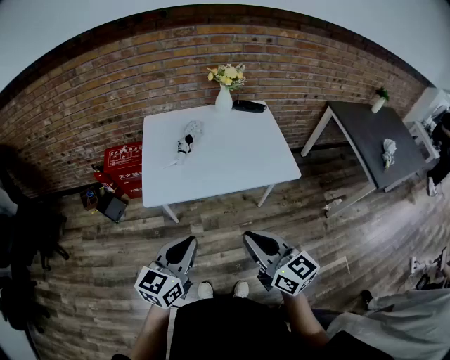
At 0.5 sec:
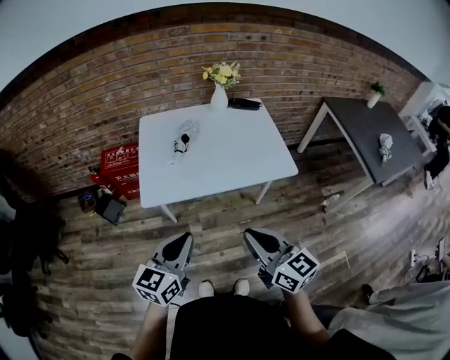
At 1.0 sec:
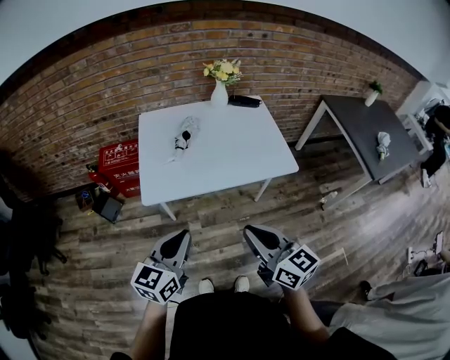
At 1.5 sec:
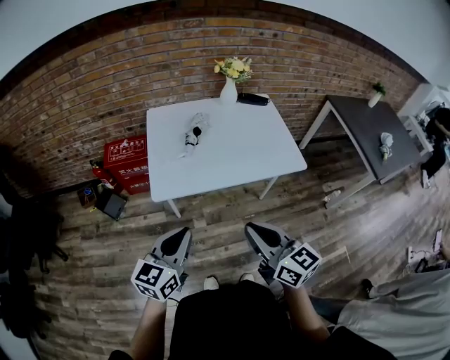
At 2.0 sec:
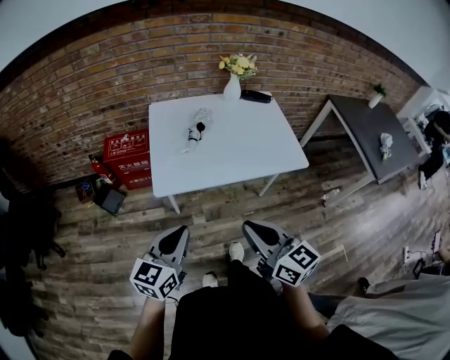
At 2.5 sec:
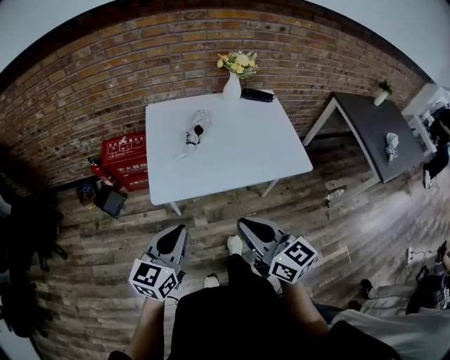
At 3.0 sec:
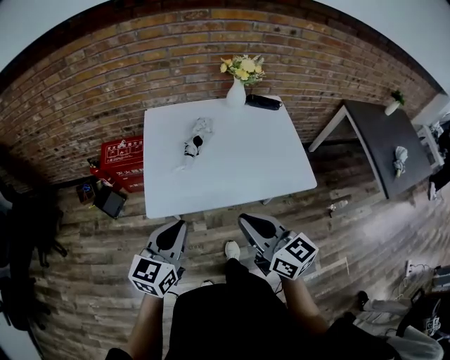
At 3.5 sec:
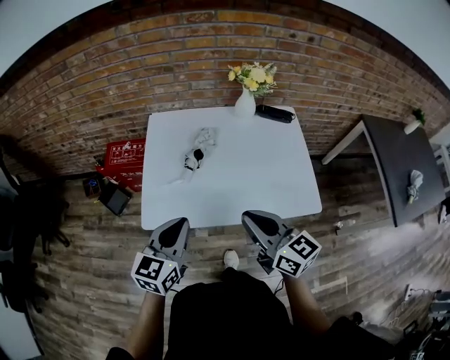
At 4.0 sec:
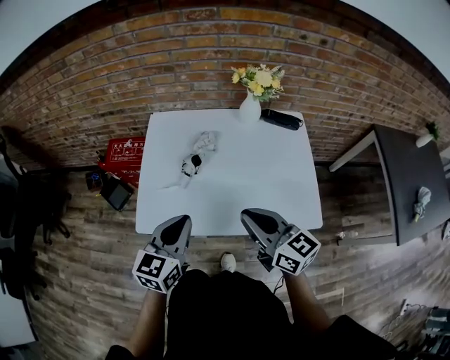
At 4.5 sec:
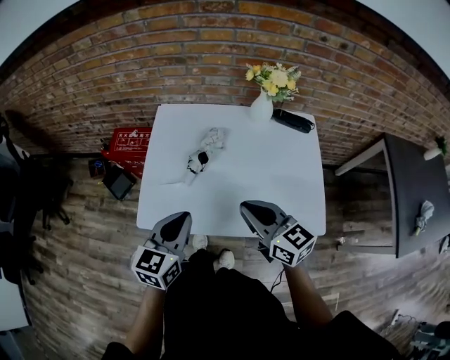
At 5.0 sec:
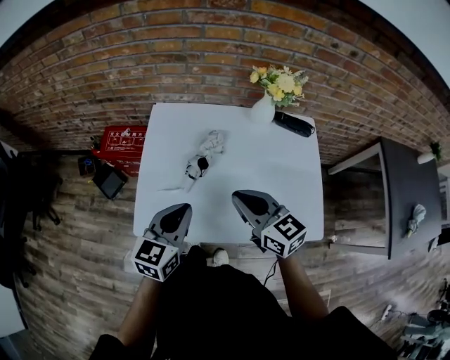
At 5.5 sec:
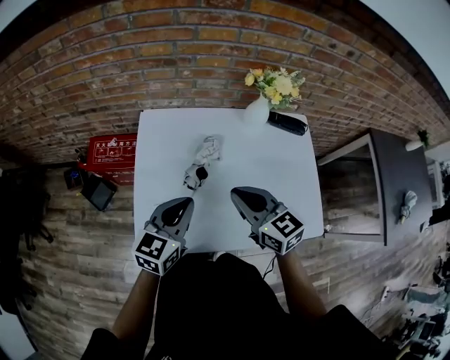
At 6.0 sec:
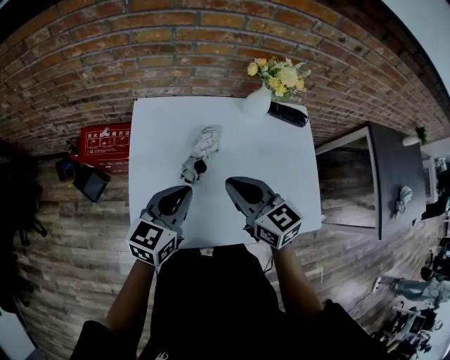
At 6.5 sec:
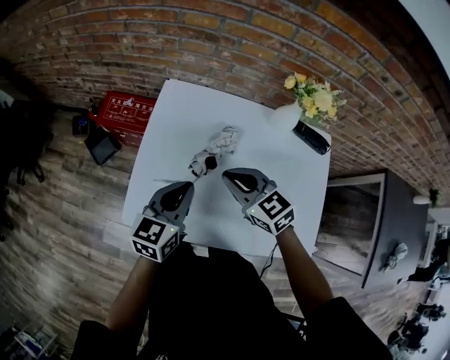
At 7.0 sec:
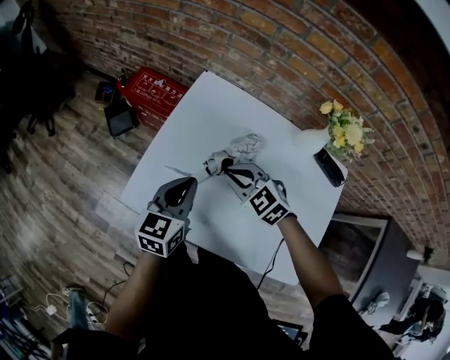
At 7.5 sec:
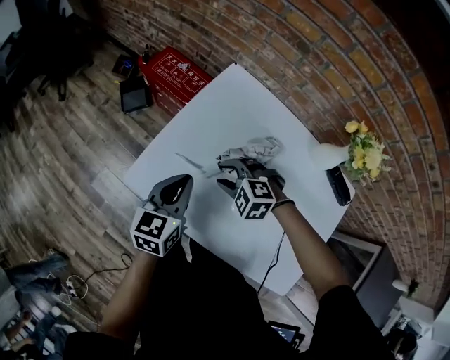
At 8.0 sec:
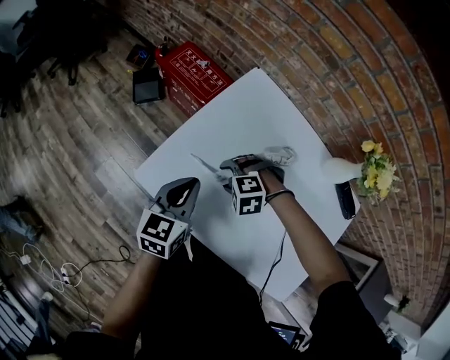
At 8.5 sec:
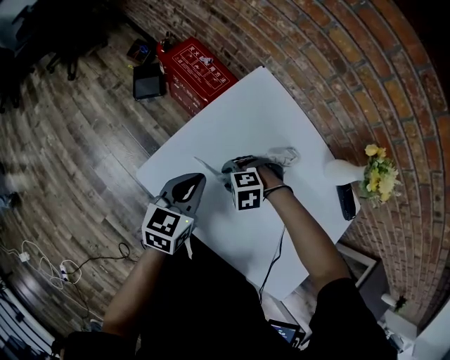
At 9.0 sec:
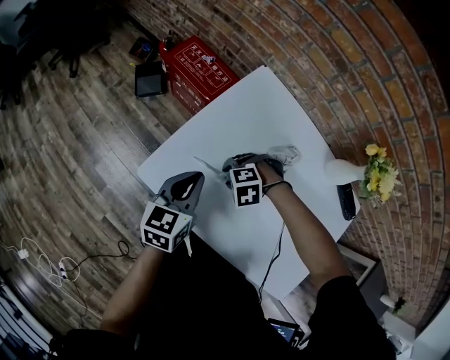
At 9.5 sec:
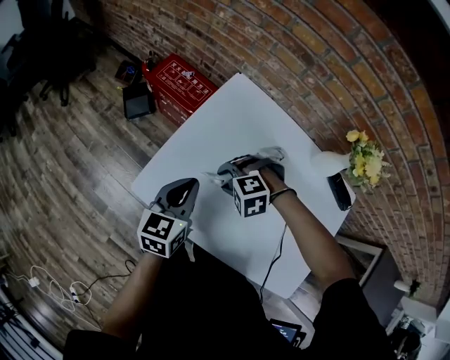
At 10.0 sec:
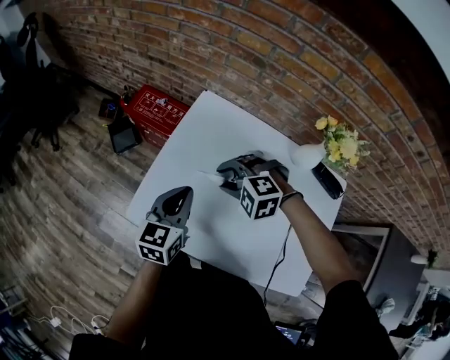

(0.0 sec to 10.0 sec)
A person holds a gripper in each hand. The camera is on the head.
0.0 sec - 2.0 sec: Both grippers move to the left, approximately 10 cm.
2.0 sec - 4.0 sec: The grippers both shift forward and to the right by roughly 30 cm.
4.0 sec - 6.0 sec: The right gripper goes some 20 cm forward and to the left. Meanwhile the left gripper heads forward, covering about 15 cm.
6.0 sec - 8.0 sec: The left gripper ends up approximately 15 cm from where it was, and swivels roughly 50 degrees, while the right gripper goes about 25 cm downward, tilts its fingers about 50 degrees downward, and opens.
8.0 sec - 10.0 sec: The right gripper heads upward, covering some 15 cm, and swivels roughly 20 degrees; the left gripper ends up some 10 cm from where it was.

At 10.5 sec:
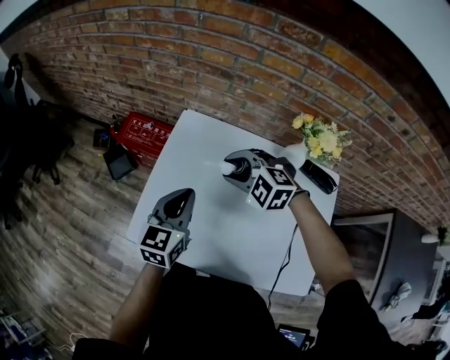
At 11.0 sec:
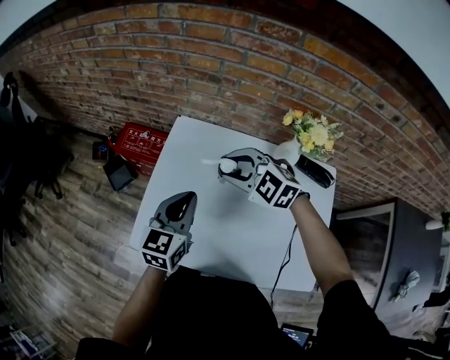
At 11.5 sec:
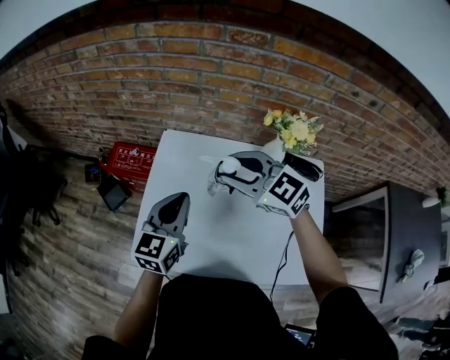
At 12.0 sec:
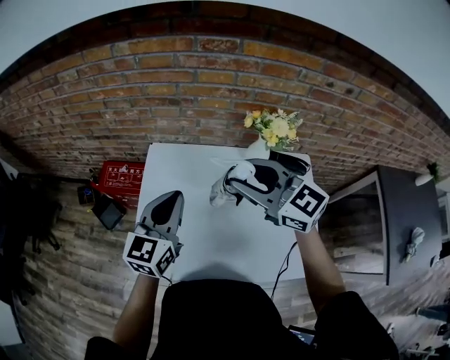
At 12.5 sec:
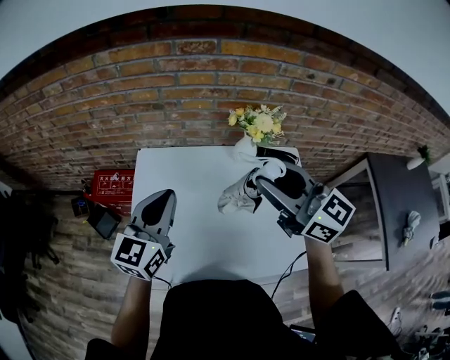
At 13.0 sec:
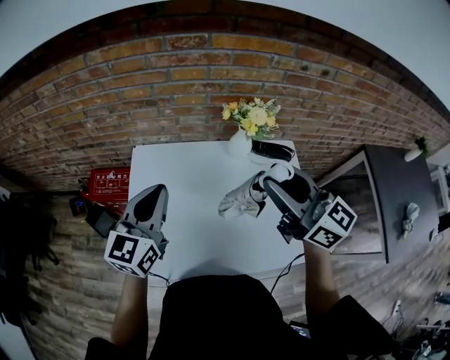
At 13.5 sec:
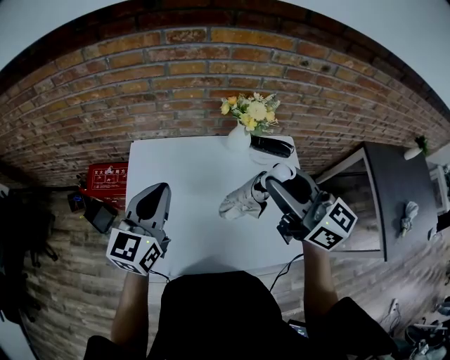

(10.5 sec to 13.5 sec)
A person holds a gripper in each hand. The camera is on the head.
10.5 sec - 12.0 sec: The left gripper travels upward by some 10 cm; the right gripper moves upward, to the right and backward, approximately 20 cm, and angles its fingers upward, by about 40 degrees.
12.0 sec - 13.5 sec: The right gripper moves to the right and backward, approximately 15 cm, and changes its angle by some 30 degrees.

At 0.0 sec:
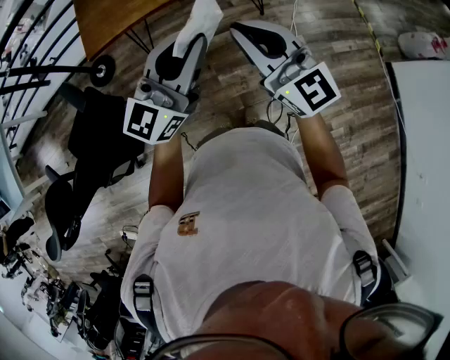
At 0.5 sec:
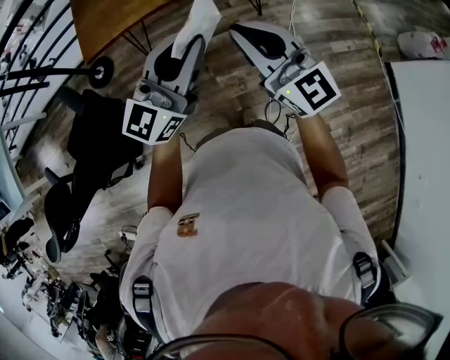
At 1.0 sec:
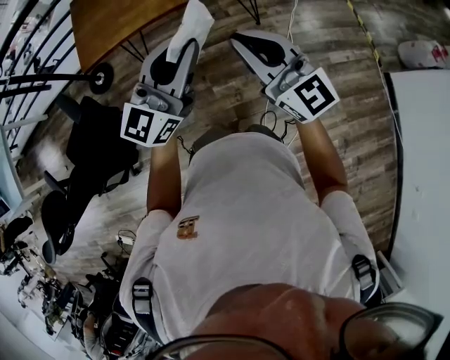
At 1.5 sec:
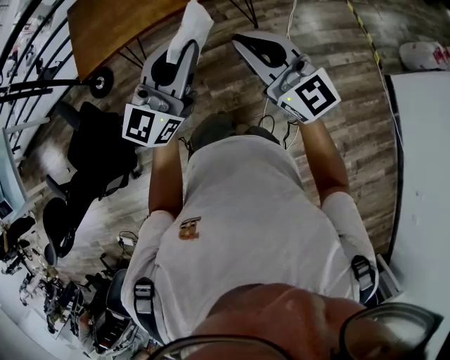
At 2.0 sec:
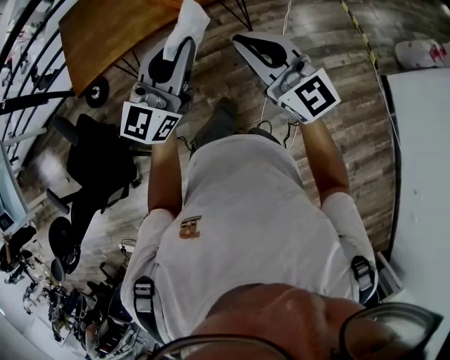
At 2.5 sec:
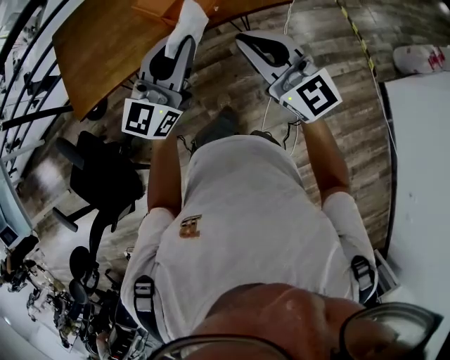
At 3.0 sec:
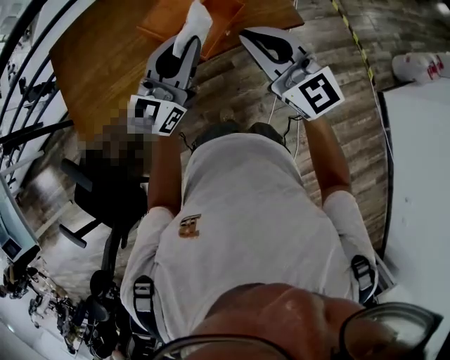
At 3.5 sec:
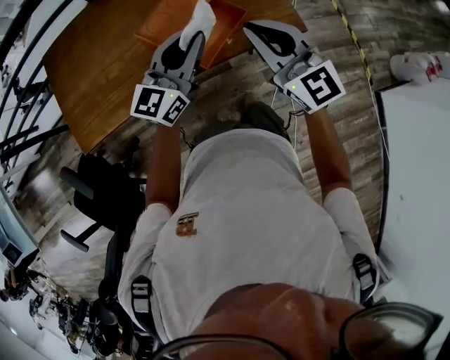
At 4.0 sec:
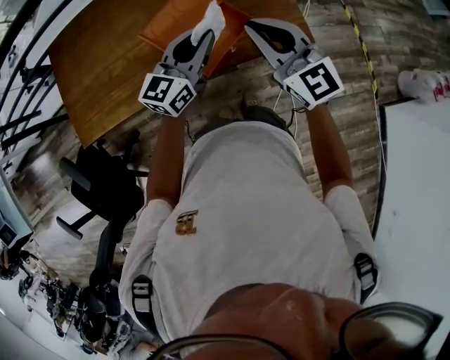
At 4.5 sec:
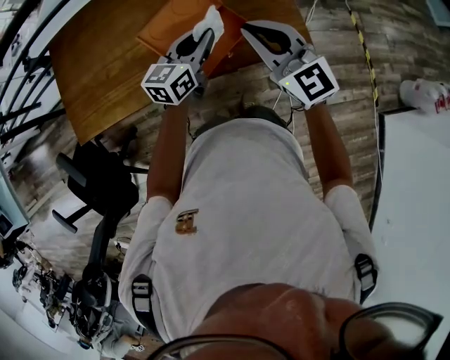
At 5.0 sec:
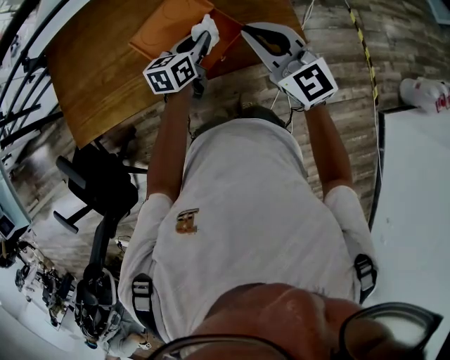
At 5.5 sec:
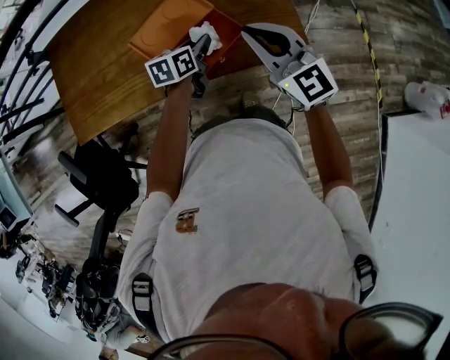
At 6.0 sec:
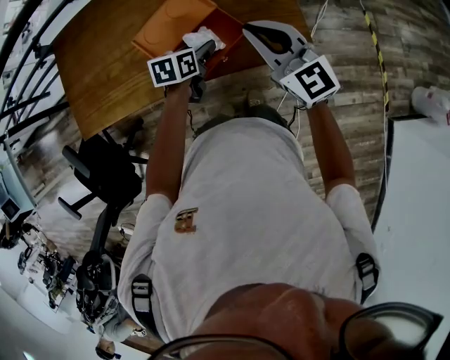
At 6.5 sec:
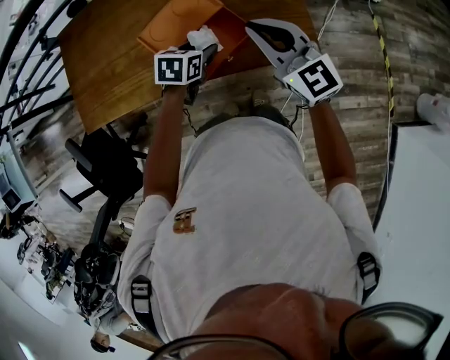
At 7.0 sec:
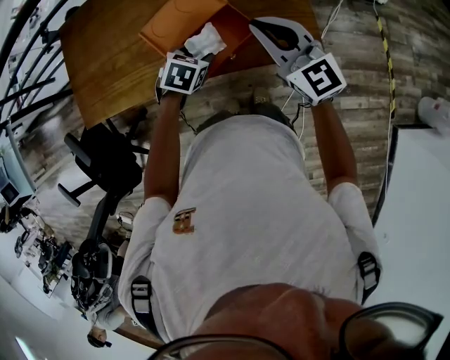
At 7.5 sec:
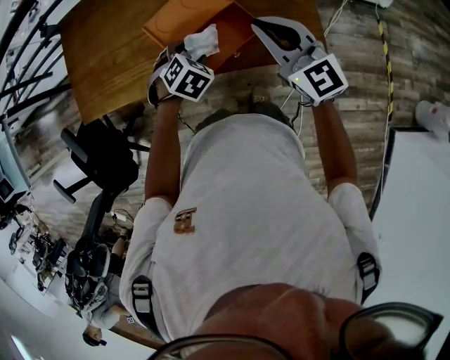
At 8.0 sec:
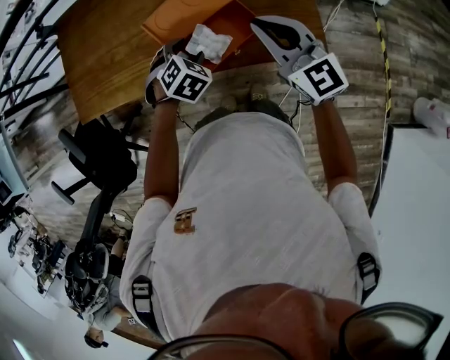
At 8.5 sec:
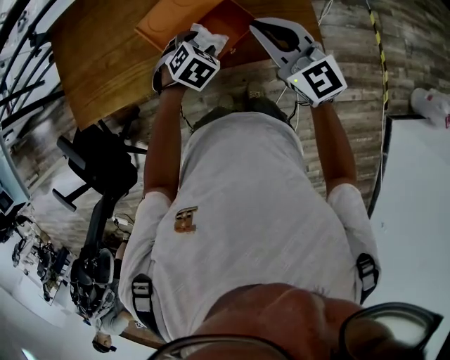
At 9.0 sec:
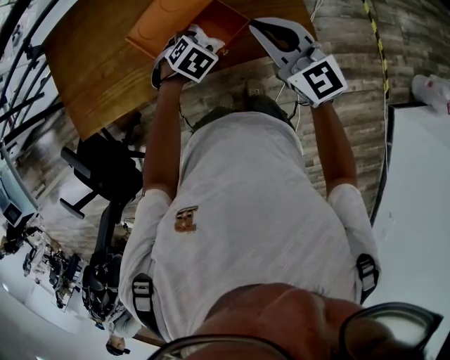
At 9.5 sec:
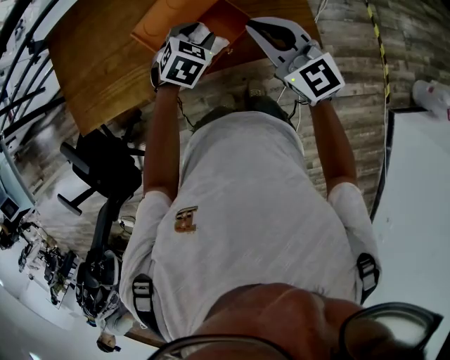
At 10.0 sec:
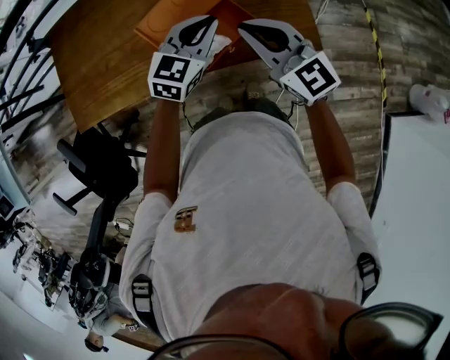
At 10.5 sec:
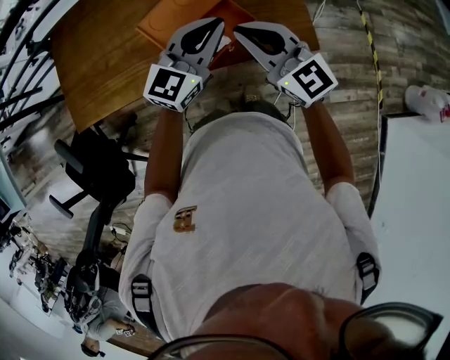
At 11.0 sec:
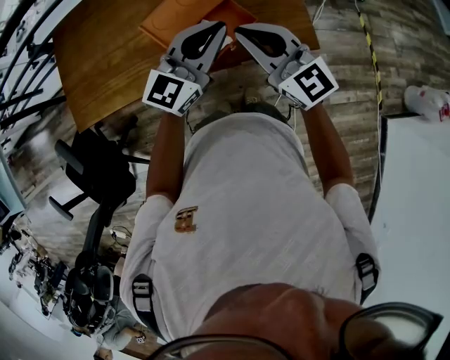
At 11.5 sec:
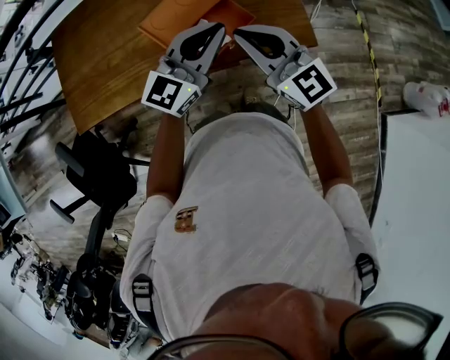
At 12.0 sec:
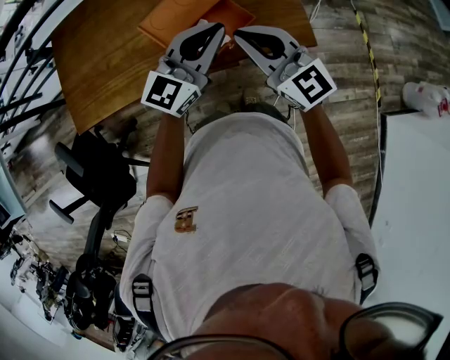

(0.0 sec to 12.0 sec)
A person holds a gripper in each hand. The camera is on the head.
0.0 sec - 2.0 sec: The left gripper travels forward and to the right by roughly 20 cm. The right gripper goes about 20 cm to the right and forward.
2.0 sec - 4.0 sec: Both grippers are carried forward, roughly 40 cm.
4.0 sec - 6.0 sec: The left gripper goes some 20 cm downward, tips its fingers downward by some 40 degrees, and opens up. Meanwhile the right gripper goes roughly 10 cm to the right and forward.
6.0 sec - 8.0 sec: The left gripper moves to the left, approximately 10 cm, and rotates around the line of its fingers by some 50 degrees, clockwise from behind.
8.0 sec - 10.0 sec: The left gripper goes about 15 cm upward and to the right, tips its fingers upward by approximately 40 degrees, and closes its fingers.
10.0 sec - 12.0 sec: The left gripper goes some 10 cm upward and backward, and turns by about 30 degrees. Meanwhile the right gripper shifts approximately 5 cm backward.

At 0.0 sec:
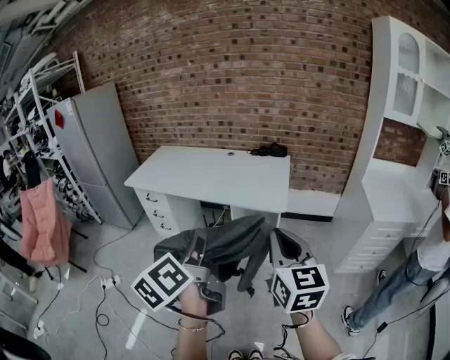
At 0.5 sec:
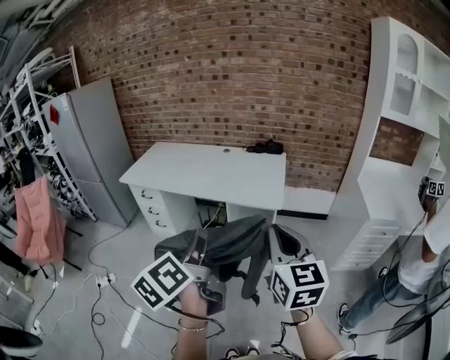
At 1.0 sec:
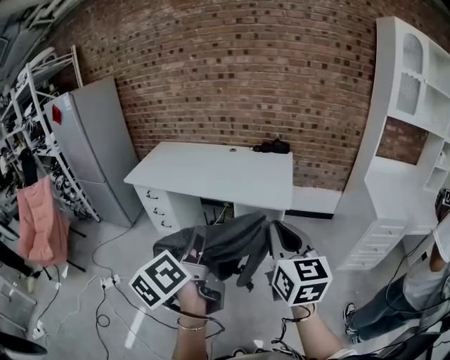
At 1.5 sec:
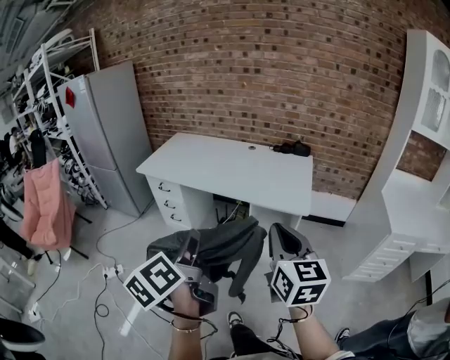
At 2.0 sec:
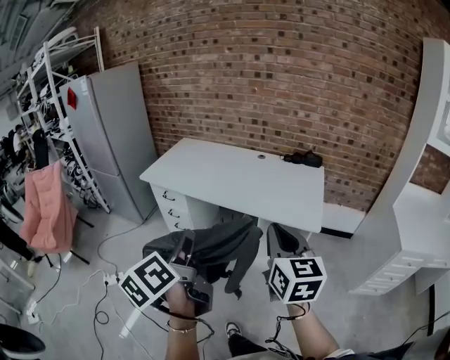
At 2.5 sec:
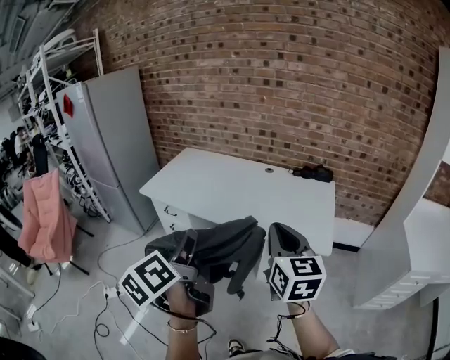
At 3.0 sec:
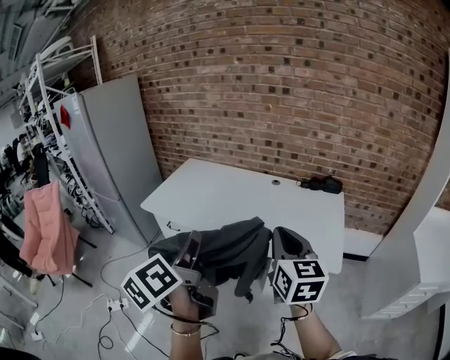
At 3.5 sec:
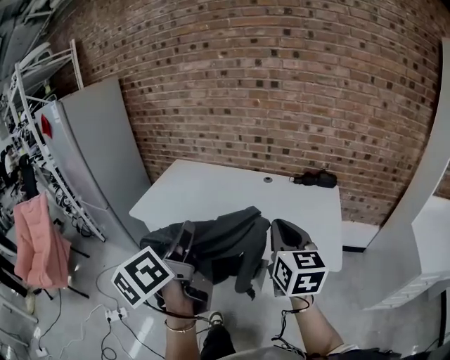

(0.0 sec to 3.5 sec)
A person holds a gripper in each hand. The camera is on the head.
0.0 sec - 2.0 sec: The left gripper goes roughly 20 cm to the left and forward. Meanwhile the right gripper heads forward and to the left, covering approximately 25 cm.
2.0 sec - 3.5 sec: The two grippers go some 25 cm forward.
